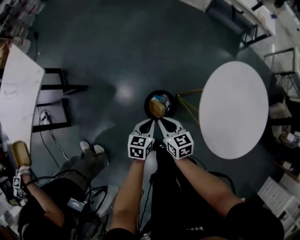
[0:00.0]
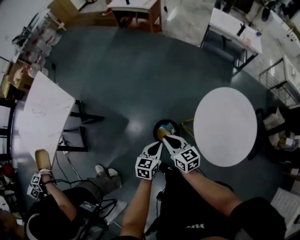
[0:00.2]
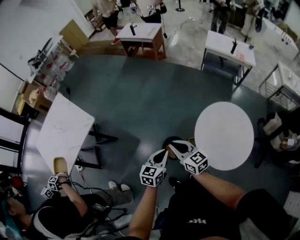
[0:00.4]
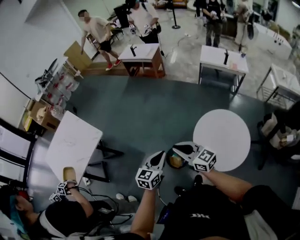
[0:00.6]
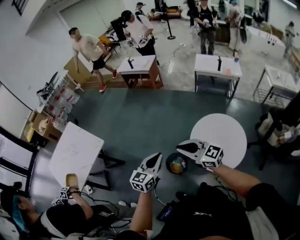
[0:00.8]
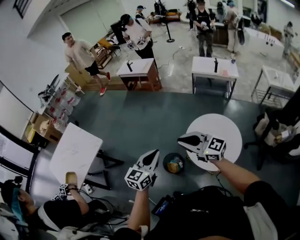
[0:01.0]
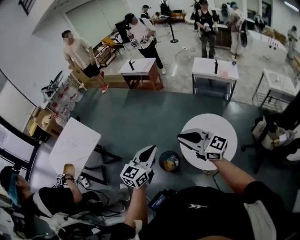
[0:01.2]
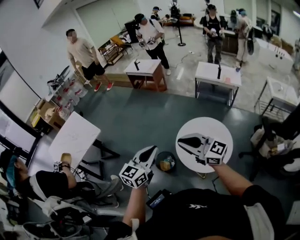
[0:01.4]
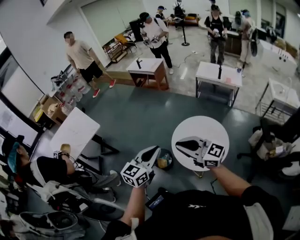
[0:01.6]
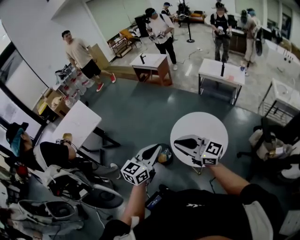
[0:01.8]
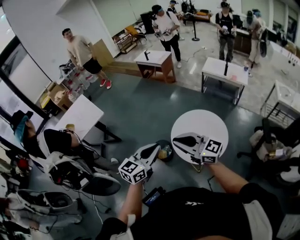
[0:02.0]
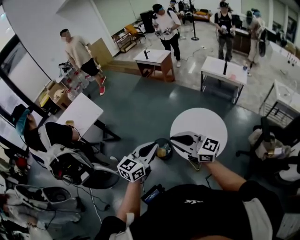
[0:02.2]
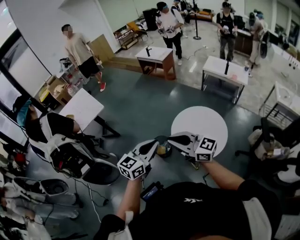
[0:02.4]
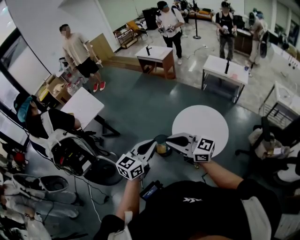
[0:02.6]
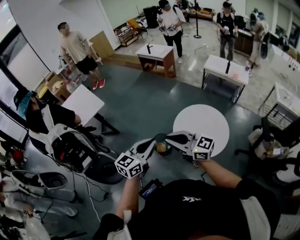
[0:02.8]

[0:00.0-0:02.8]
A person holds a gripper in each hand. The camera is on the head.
0.0 to 1.4 s: The grippers both shift upward by some 50 cm. The right gripper points its fingers about 40 degrees further upward; the left gripper tilts its fingers about 40 degrees upward.
1.4 to 2.8 s: The right gripper heads backward and to the left, covering approximately 10 cm. Meanwhile the left gripper heads backward, covering approximately 10 cm.

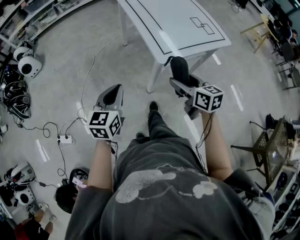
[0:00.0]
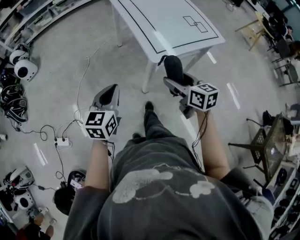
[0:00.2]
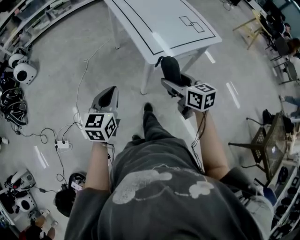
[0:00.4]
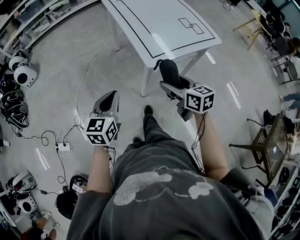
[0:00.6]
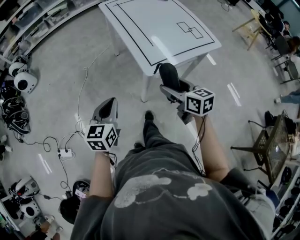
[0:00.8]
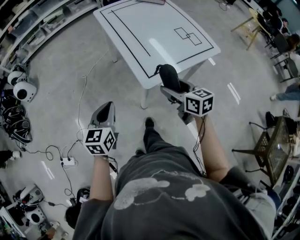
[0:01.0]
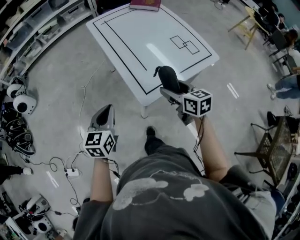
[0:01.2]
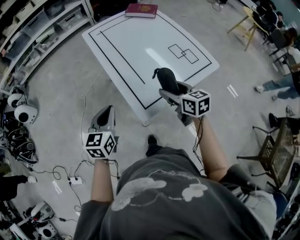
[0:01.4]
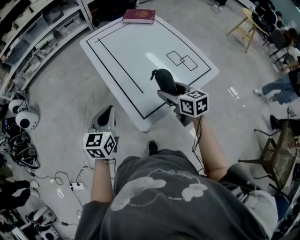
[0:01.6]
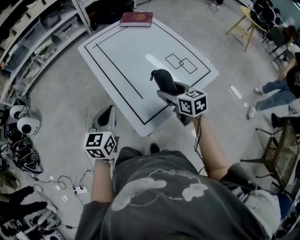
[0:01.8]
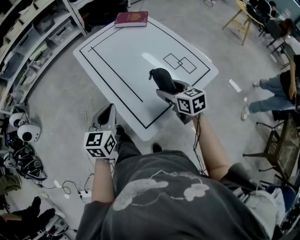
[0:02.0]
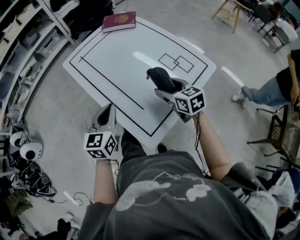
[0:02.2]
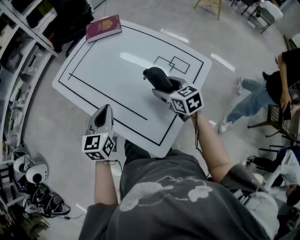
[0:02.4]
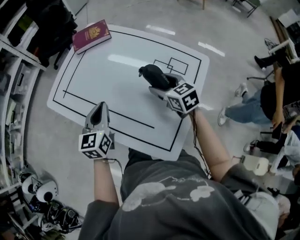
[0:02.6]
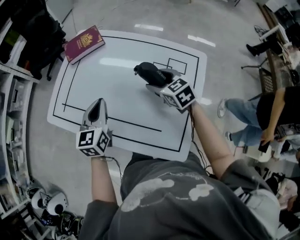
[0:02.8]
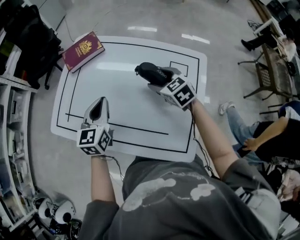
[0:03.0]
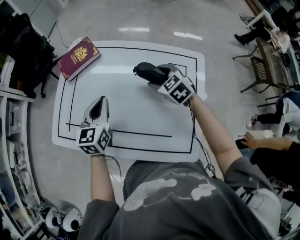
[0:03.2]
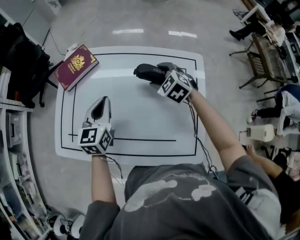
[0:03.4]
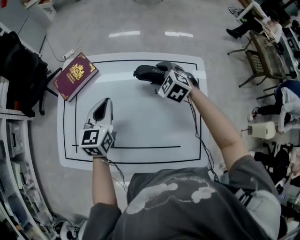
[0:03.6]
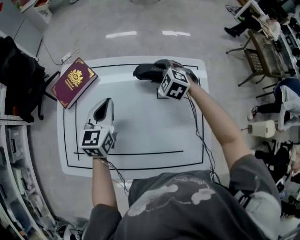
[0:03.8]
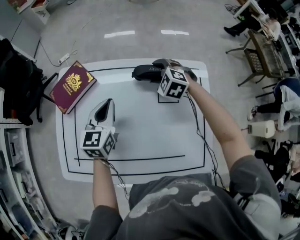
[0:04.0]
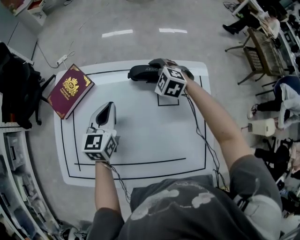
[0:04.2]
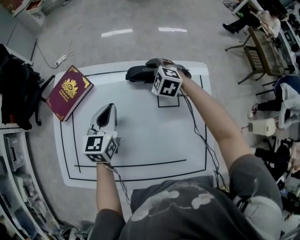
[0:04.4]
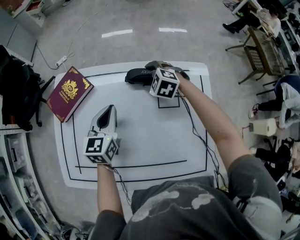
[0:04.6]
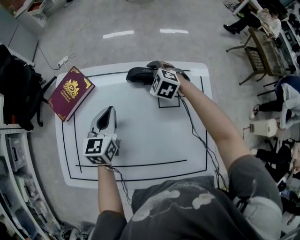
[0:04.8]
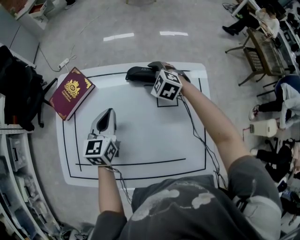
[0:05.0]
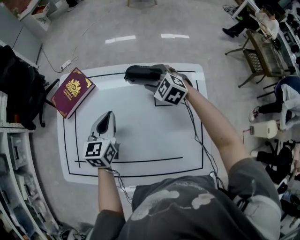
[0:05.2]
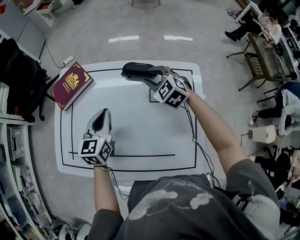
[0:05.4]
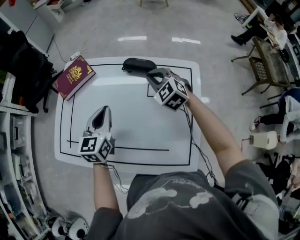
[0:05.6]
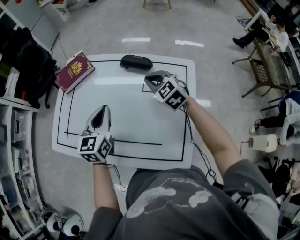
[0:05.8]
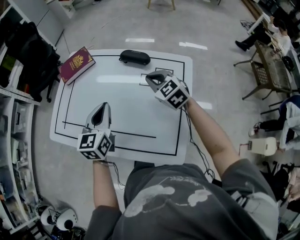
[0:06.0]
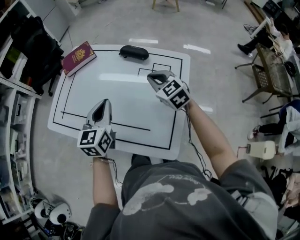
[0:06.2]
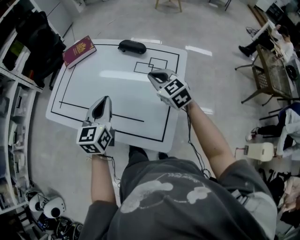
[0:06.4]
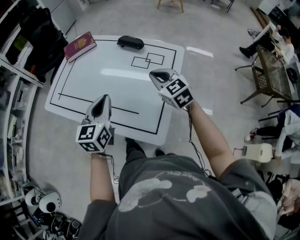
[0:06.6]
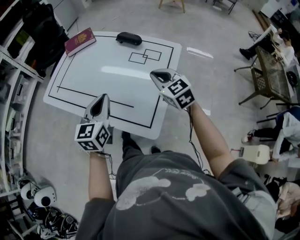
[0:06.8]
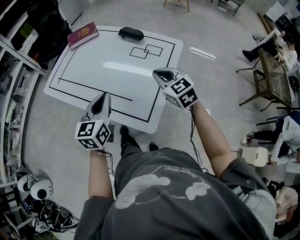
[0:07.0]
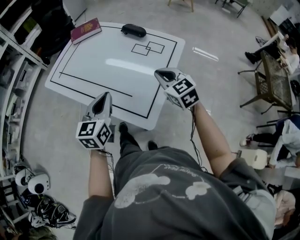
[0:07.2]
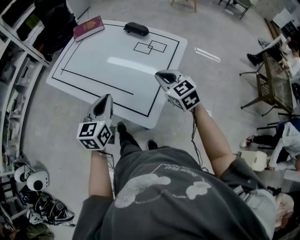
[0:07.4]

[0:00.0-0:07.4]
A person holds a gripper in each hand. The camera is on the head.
0.0 to 1.4 s: The grippers both shift forward and to the right by roughly 20 cm.
1.4 to 3.0 s: The left gripper moves about 40 cm, and swivels approximately 40 degrees; the right gripper moves roughly 30 cm, and changes its angle by about 40 degrees.
3.0 to 4.4 s: Both grippers travel together forward, about 20 cm. The right gripper rotates about 30 degrees.
4.4 to 6.0 s: Both grippers move backward and upward, some 20 cm. The right gripper swivels some 30 degrees, and closes.
6.0 to 7.4 s: The grippers both shift backward by approximately 25 cm.

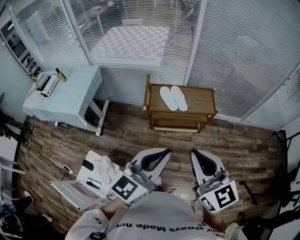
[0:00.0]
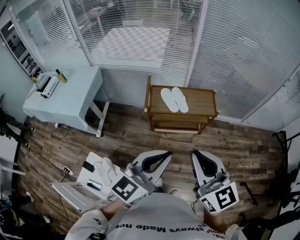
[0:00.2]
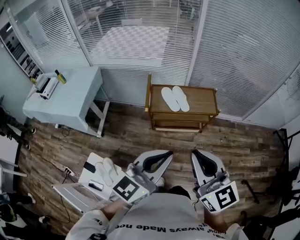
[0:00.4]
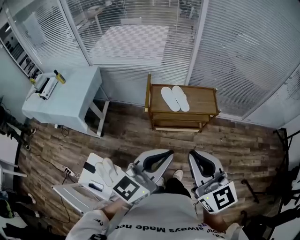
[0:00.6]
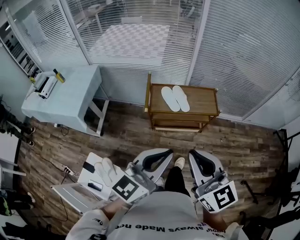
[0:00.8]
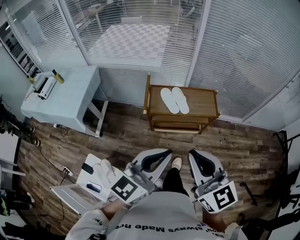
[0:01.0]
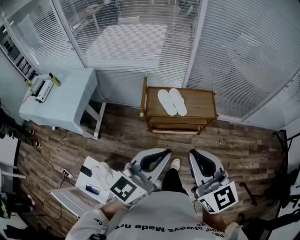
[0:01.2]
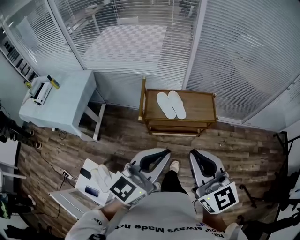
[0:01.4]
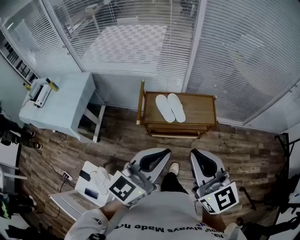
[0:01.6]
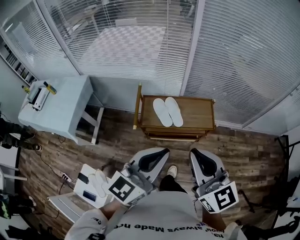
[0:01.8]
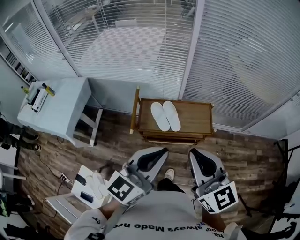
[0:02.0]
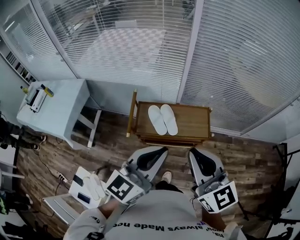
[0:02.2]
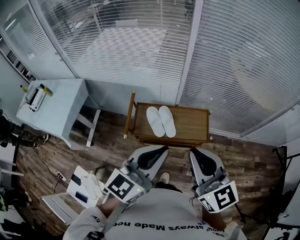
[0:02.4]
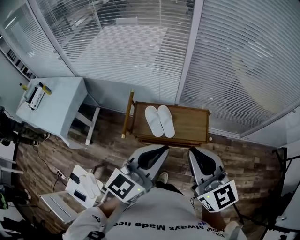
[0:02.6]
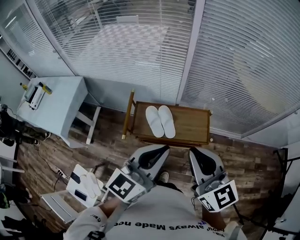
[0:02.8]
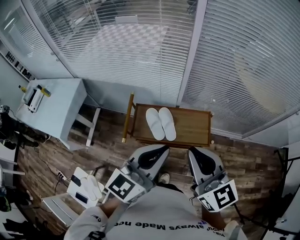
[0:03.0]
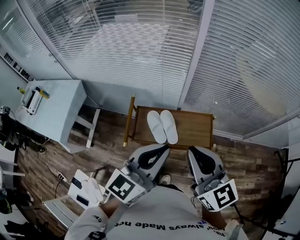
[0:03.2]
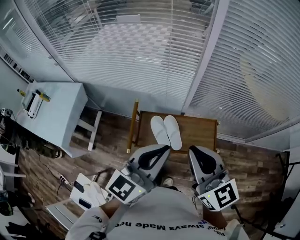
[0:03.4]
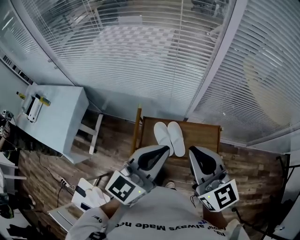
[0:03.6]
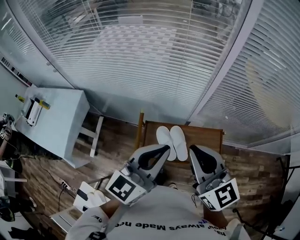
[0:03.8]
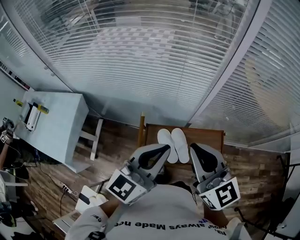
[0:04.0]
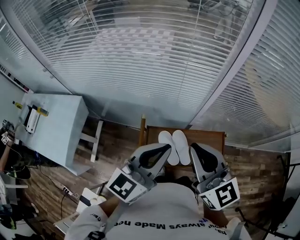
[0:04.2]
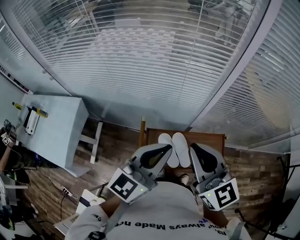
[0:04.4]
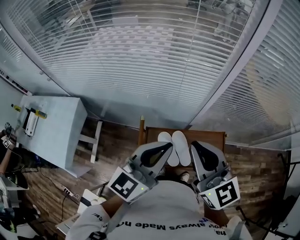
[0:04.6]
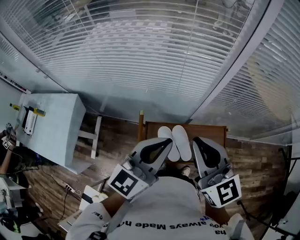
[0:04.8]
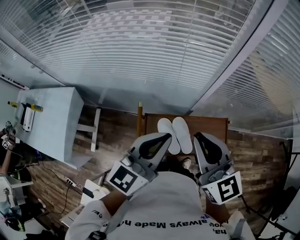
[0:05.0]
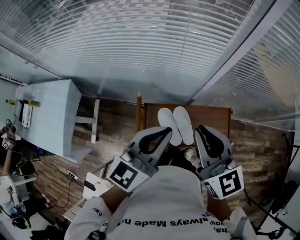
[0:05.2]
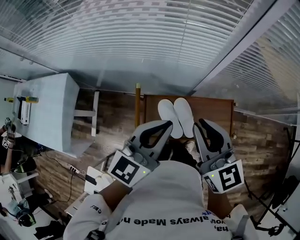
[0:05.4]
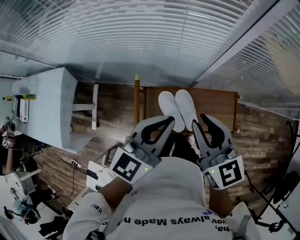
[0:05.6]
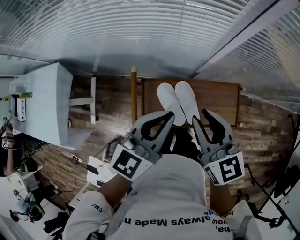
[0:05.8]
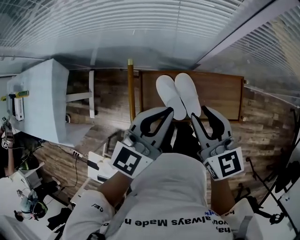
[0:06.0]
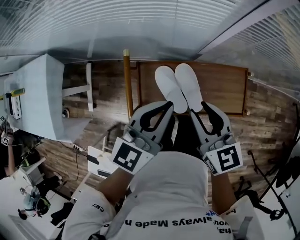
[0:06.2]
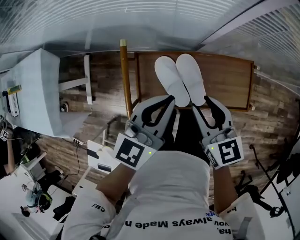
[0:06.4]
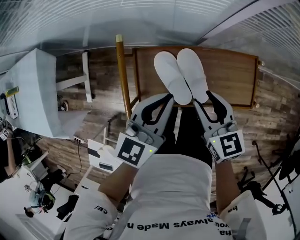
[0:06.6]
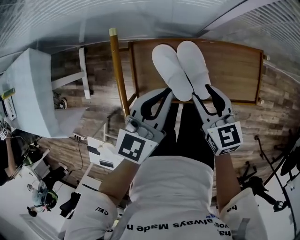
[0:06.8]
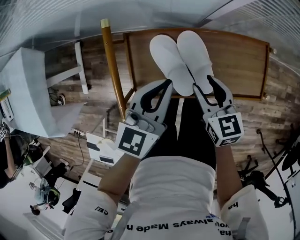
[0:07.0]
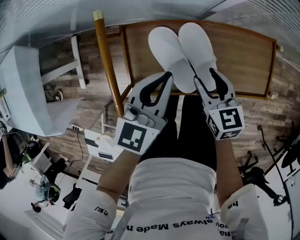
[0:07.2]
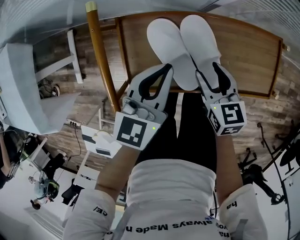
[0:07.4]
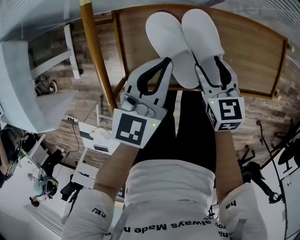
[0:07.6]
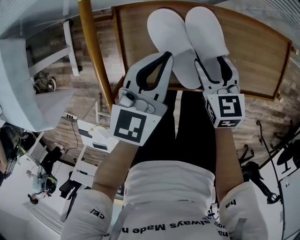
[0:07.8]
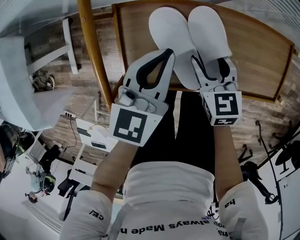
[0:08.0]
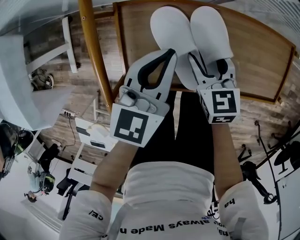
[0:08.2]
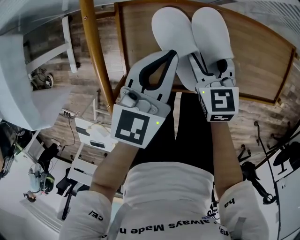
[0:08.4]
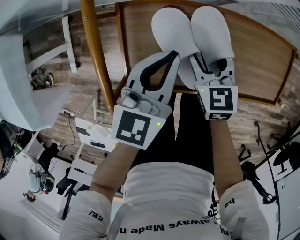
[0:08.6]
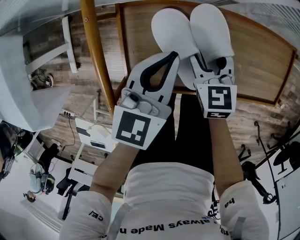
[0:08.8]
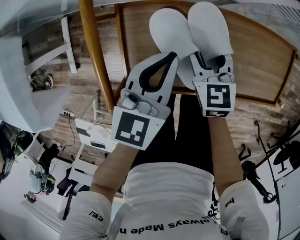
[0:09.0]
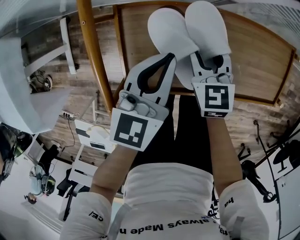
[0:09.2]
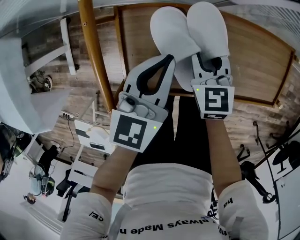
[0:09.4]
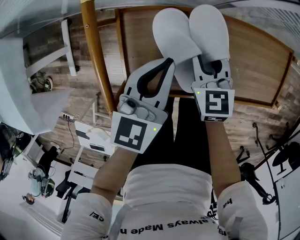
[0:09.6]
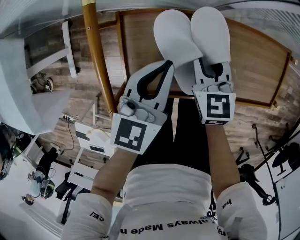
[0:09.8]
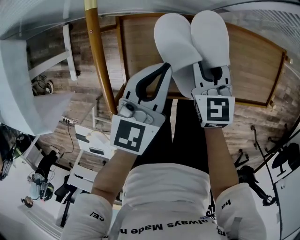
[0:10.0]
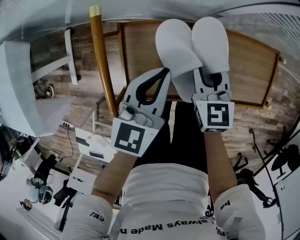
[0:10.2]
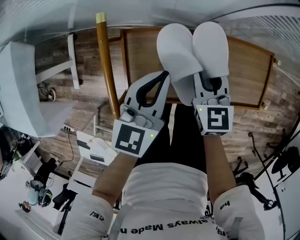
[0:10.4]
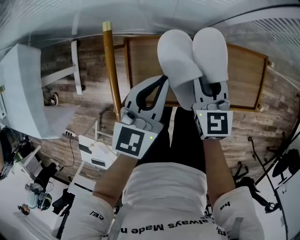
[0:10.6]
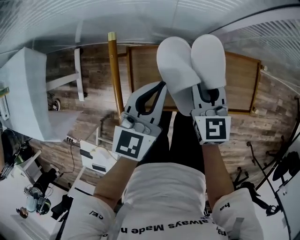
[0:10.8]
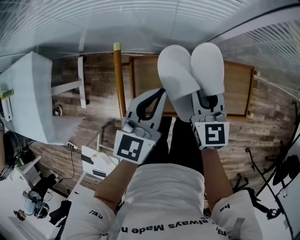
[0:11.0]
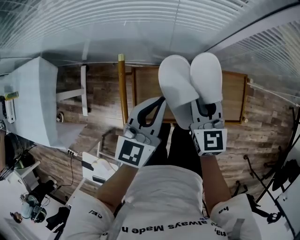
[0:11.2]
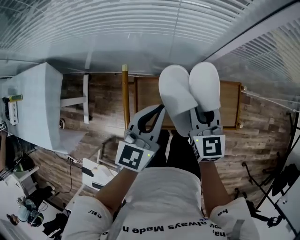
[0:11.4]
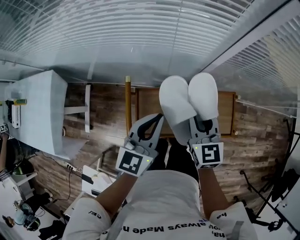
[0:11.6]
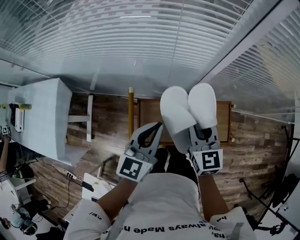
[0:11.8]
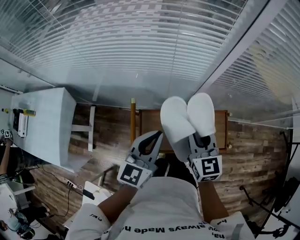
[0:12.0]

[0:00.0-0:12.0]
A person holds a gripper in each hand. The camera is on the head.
0.0 to 1.6 s: The grippers both shift forward by some 15 cm.
1.6 to 3.0 s: The grippers both shift forward by roughly 20 cm.
3.0 to 4.4 s: The two grippers go about 25 cm forward and to the left.
4.4 to 6.0 s: Both grippers move downward, roughly 20 cm. The right gripper swivels some 20 degrees.
6.0 to 7.6 s: Both grippers move downward, roughly 30 cm. The right gripper changes its angle by about 20 degrees, and opens its fingers.
7.6 to 9.0 s: The right gripper goes about 10 cm forward and to the left.
9.0 to 10.4 s: Both grippers travel together upward, some 10 cm. The right gripper closes its fingers.
10.4 to 12.0 s: The two grippers go some 30 cm upward.

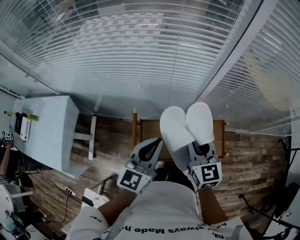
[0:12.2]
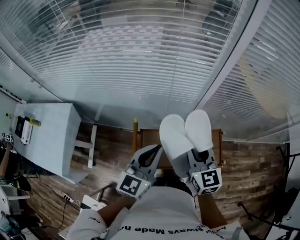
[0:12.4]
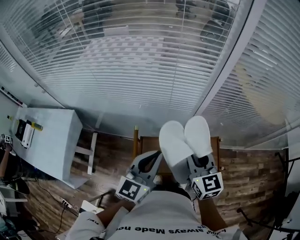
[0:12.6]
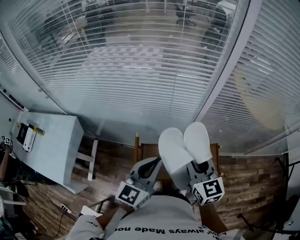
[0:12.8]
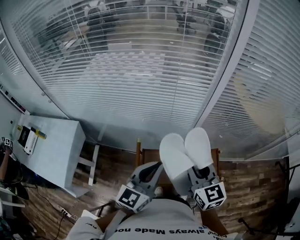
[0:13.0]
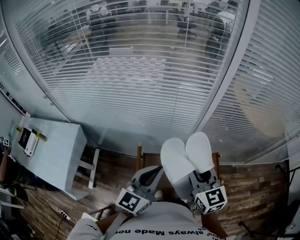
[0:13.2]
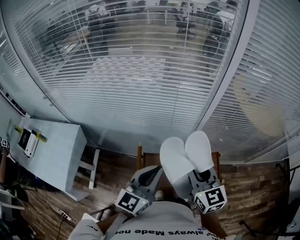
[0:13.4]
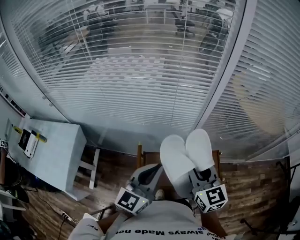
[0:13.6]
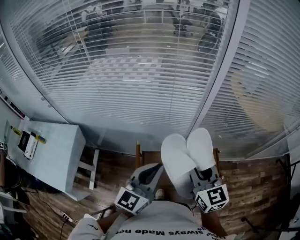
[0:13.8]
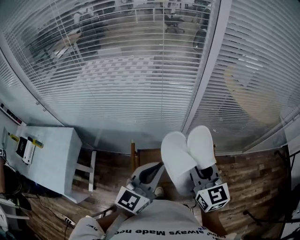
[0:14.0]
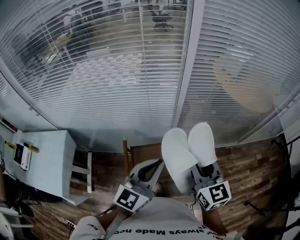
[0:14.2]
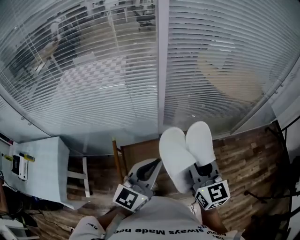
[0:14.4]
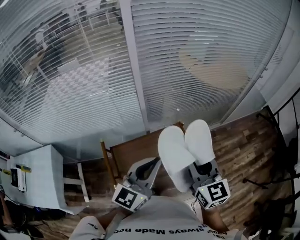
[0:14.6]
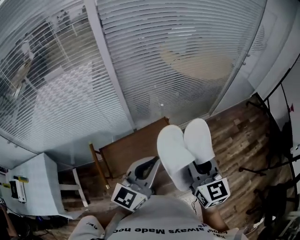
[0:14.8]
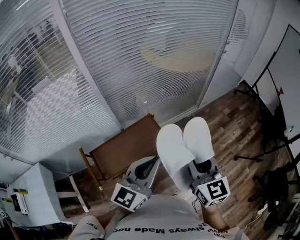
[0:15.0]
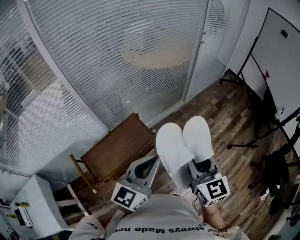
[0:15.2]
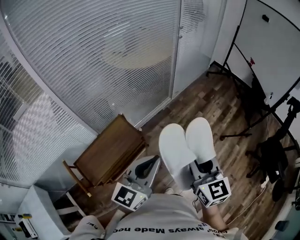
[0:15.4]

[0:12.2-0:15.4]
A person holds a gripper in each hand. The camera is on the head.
12.2 to 13.8 s: The grippers both shift upward and backward by about 15 cm.
13.8 to 15.4 s: Both grippers are carried approximately 60 cm. The left gripper swivels about 50 degrees. Meanwhile the right gripper turns by about 50 degrees.
